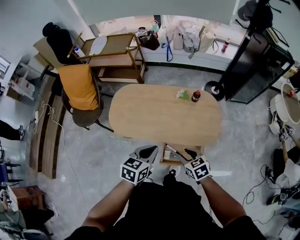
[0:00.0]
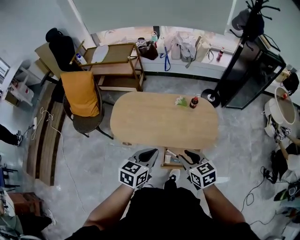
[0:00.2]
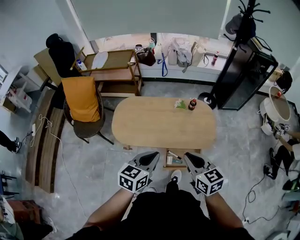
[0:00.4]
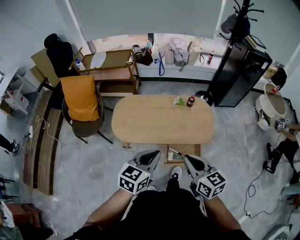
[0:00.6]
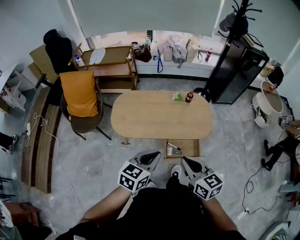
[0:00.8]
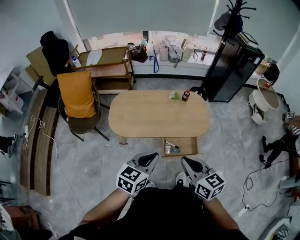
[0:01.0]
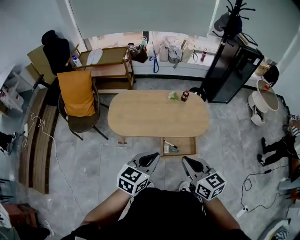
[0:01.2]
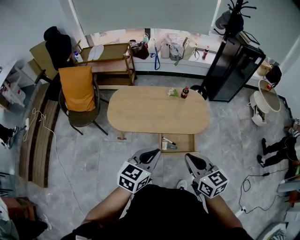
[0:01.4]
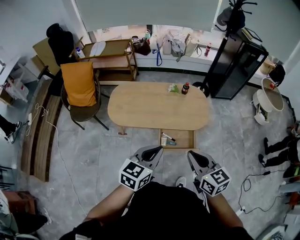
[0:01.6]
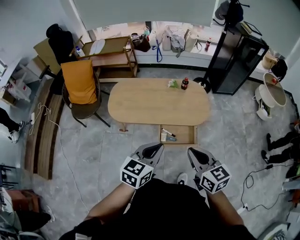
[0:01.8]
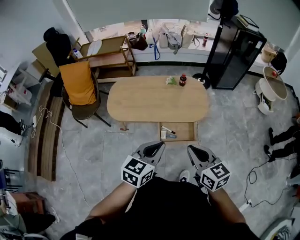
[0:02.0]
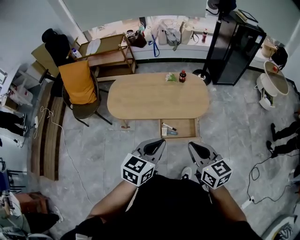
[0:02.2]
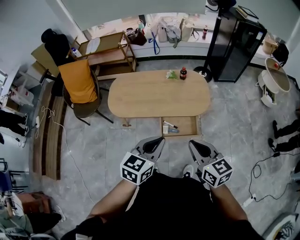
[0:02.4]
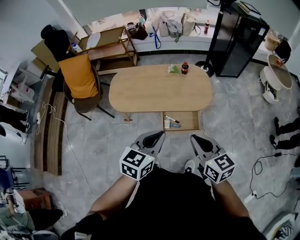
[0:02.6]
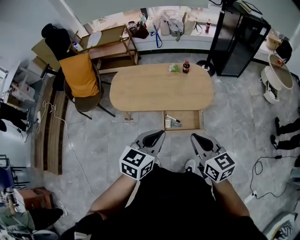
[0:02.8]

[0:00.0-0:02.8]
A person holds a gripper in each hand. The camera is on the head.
0:00.0 to 0:01.4: The right gripper travels upward and backward by some 30 cm, swivels about 30 degrees, and closes; the left gripper is displaced backward and upward by about 20 cm.
0:01.4 to 0:02.8: The two grippers go roughly 10 cm to the right.

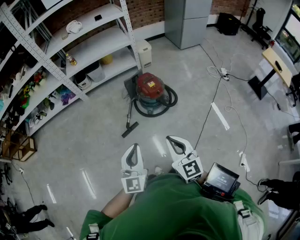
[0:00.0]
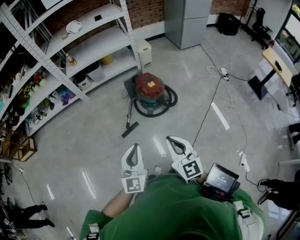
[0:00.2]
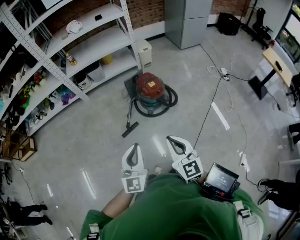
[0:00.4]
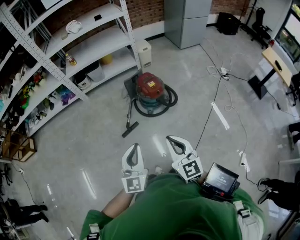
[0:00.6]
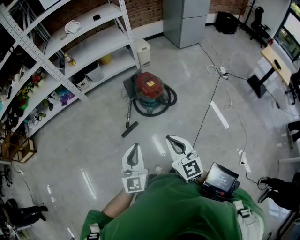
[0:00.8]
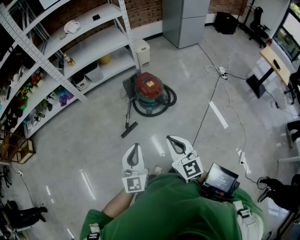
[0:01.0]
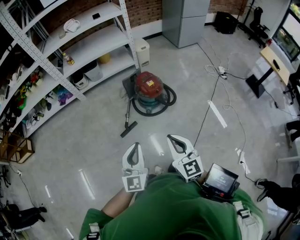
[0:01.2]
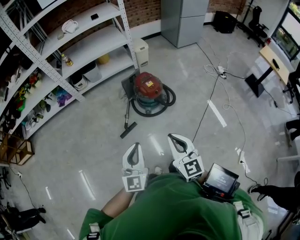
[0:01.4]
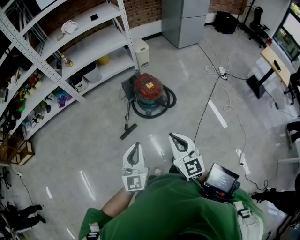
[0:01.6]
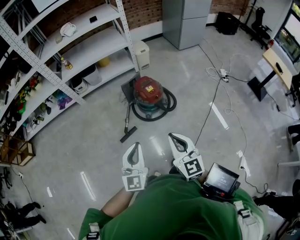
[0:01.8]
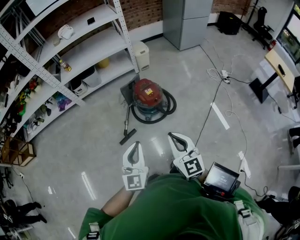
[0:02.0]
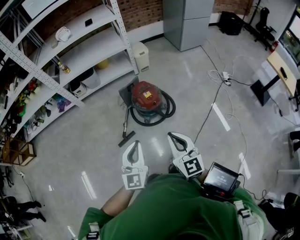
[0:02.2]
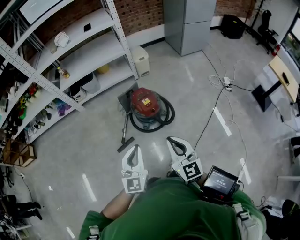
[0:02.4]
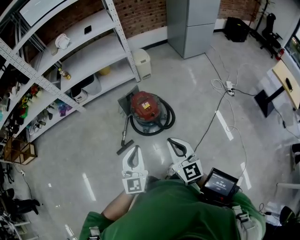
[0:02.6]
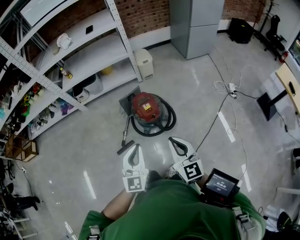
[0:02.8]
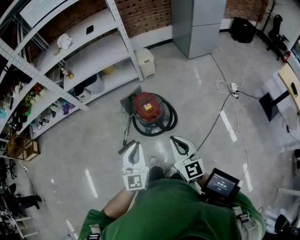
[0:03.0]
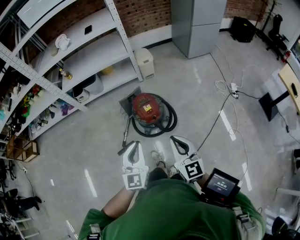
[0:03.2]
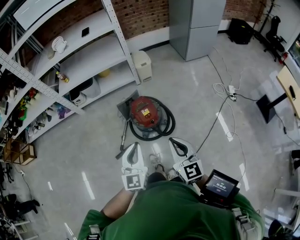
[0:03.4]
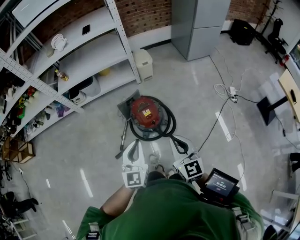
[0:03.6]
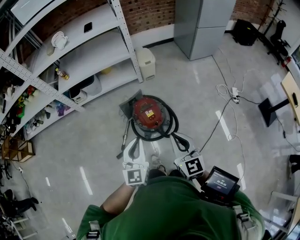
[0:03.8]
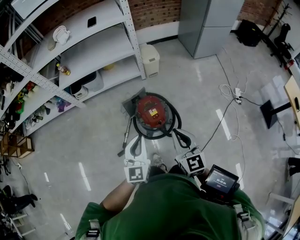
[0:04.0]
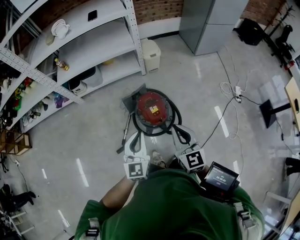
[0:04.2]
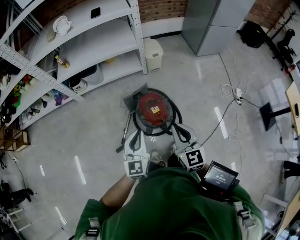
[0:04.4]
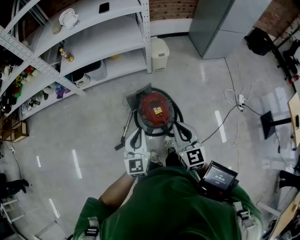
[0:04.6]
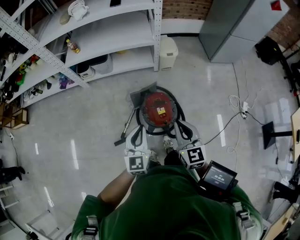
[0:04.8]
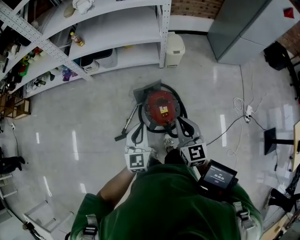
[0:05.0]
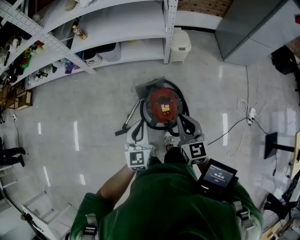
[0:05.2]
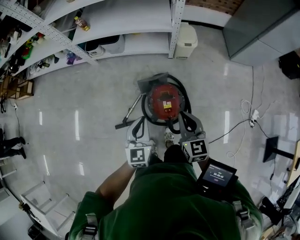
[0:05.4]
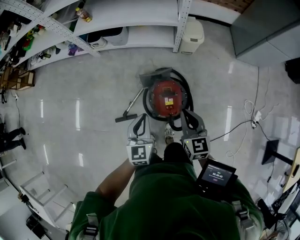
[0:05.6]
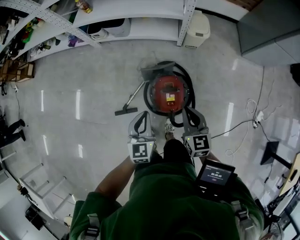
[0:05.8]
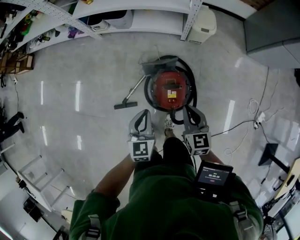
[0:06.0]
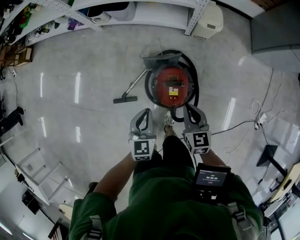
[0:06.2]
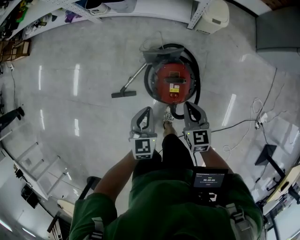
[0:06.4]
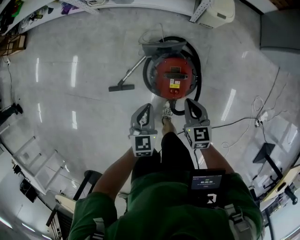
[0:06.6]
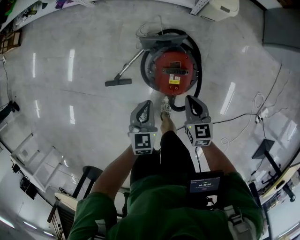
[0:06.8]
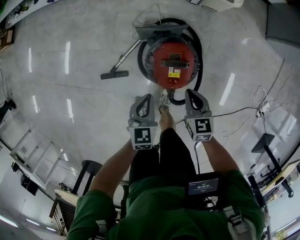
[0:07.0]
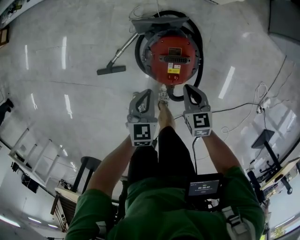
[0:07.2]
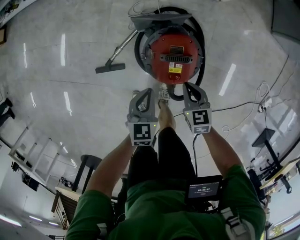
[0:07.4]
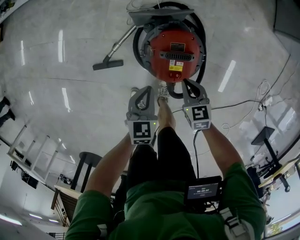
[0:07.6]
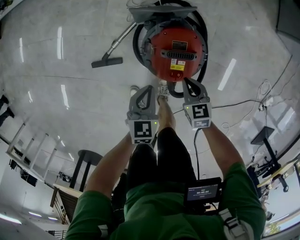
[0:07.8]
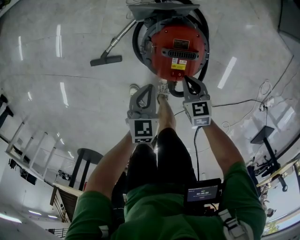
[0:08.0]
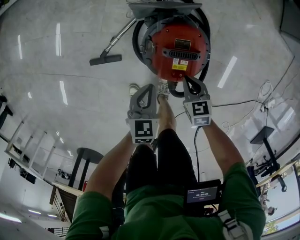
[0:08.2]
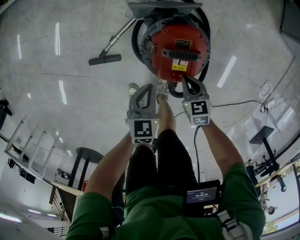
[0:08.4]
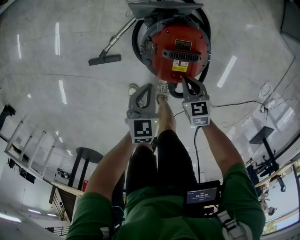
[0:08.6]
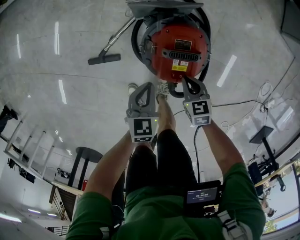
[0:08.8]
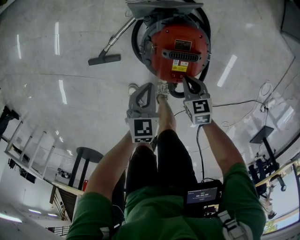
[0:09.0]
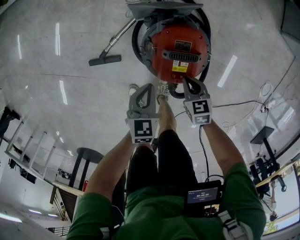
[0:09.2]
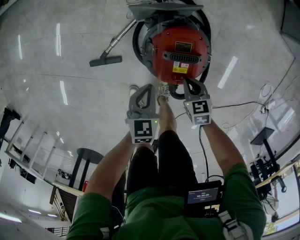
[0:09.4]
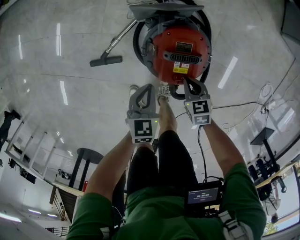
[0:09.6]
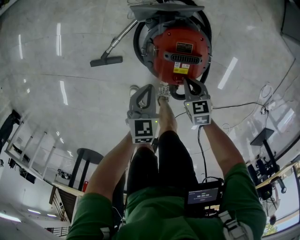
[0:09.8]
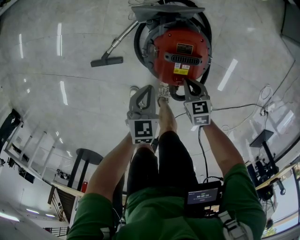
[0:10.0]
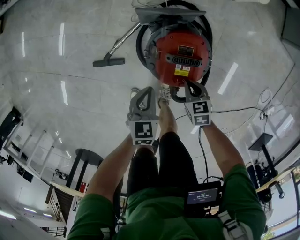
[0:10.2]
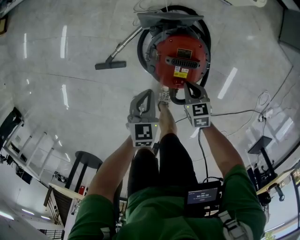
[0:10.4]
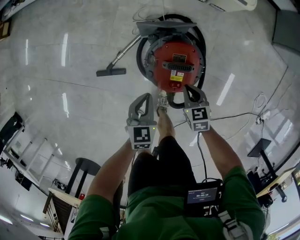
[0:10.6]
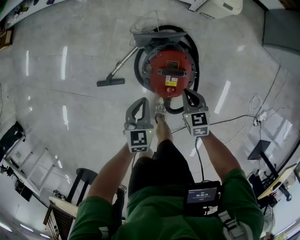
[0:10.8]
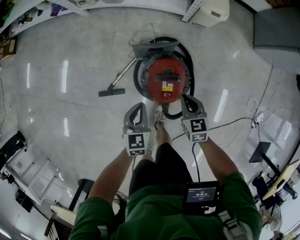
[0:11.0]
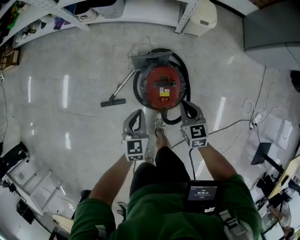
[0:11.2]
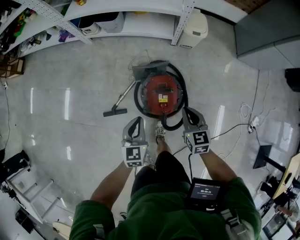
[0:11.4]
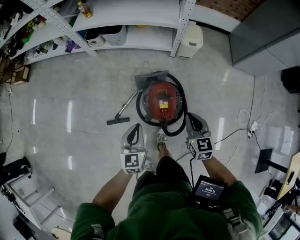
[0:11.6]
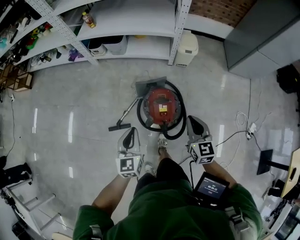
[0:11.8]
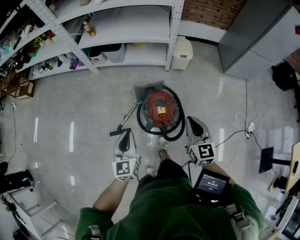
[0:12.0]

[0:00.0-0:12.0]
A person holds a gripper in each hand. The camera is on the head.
0:00.0 to 0:01.6: There are only small adjustments of the grippers.
0:01.6 to 0:03.0: Both grippers travel together forward and to the right, some 25 cm.
0:03.0 to 0:04.4: Both grippers move forward, roughly 20 cm.
0:04.4 to 0:06.0: The right gripper travels forward and downward by approximately 25 cm, and rotates some 30 degrees; the left gripper heads downward and forward, covering about 20 cm, and rotates approximately 30 degrees.
0:06.0 to 0:07.6: The two grippers go about 30 cm downward. The right gripper turns by some 30 degrees.
0:07.6 to 0:09.0: Both grippers travel together downward, approximately 5 cm.
0:09.0 to 0:10.4: There are only small adjustments of the grippers.
0:10.4 to 0:12.0: The grippers both shift upward by some 40 cm. The left gripper tilts its fingers about 30 degrees upward, while the right gripper points its fingers about 40 degrees further upward.

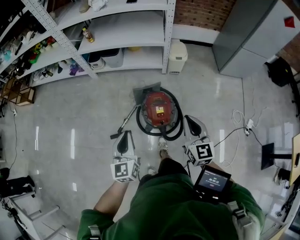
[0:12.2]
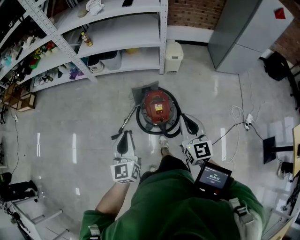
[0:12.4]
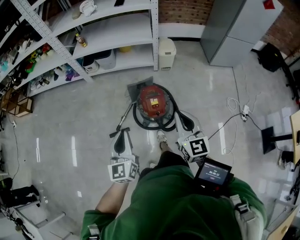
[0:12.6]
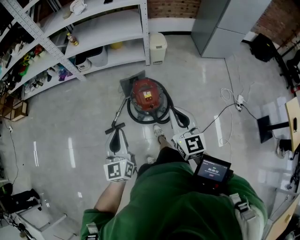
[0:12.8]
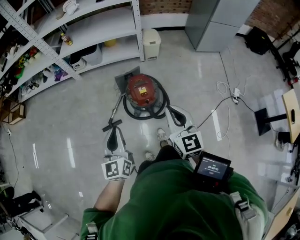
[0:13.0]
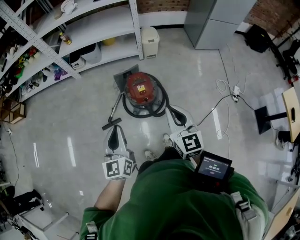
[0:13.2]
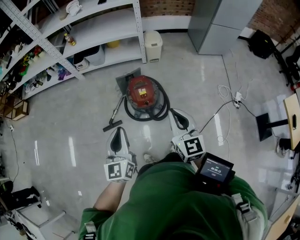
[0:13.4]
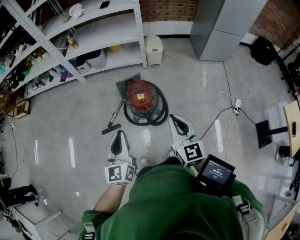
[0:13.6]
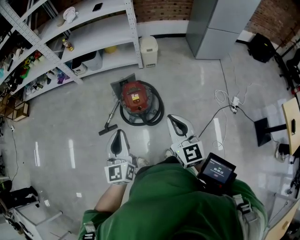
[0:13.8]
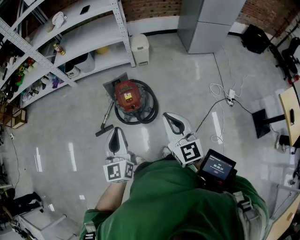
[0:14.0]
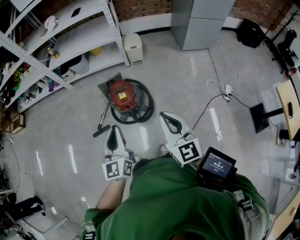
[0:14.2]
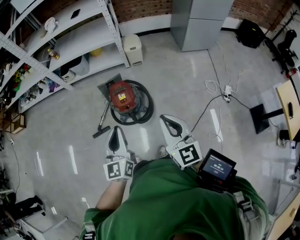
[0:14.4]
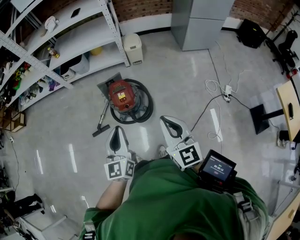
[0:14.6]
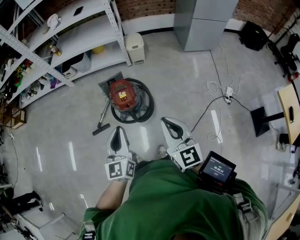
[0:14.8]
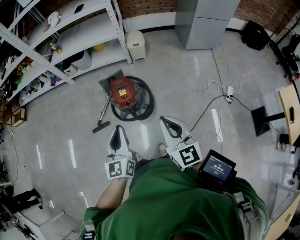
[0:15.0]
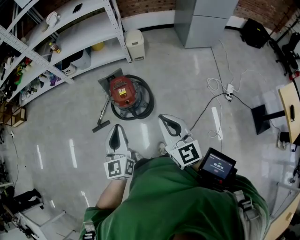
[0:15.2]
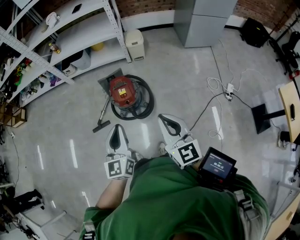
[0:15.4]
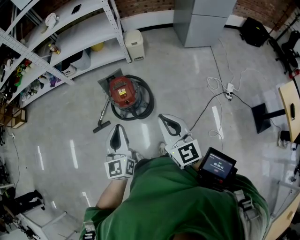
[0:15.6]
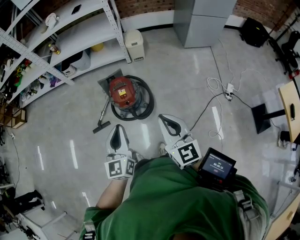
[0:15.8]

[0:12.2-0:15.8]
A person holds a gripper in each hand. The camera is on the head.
0:12.2 to 0:14.0: The left gripper is displaced backward, to the right and upward by about 25 cm, while the right gripper heads backward and to the right, covering some 25 cm.
0:14.0 to 0:15.8: The right gripper shifts by about 5 cm; the left gripper shifts roughly 5 cm to the right.

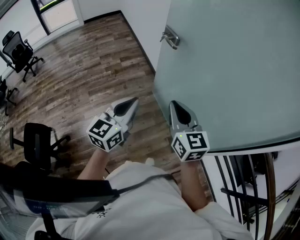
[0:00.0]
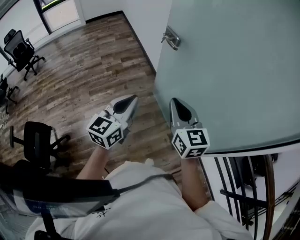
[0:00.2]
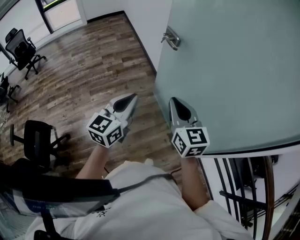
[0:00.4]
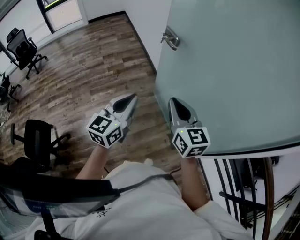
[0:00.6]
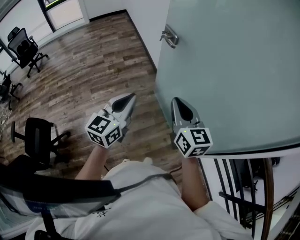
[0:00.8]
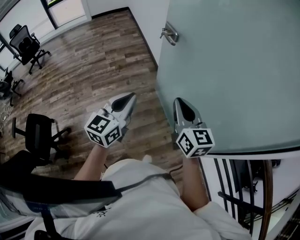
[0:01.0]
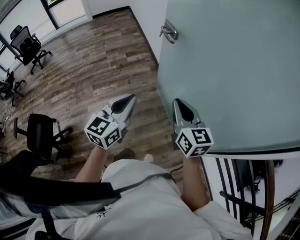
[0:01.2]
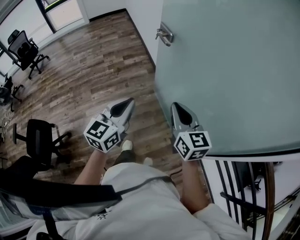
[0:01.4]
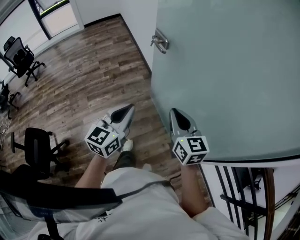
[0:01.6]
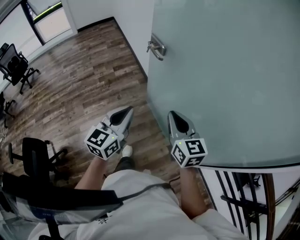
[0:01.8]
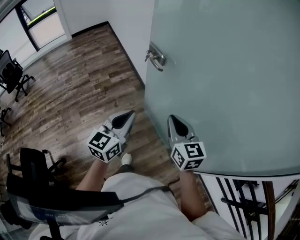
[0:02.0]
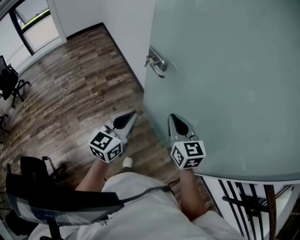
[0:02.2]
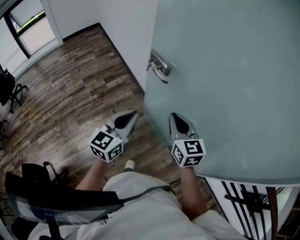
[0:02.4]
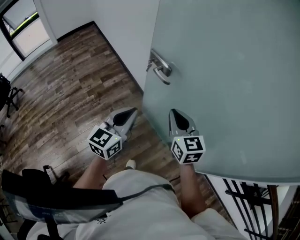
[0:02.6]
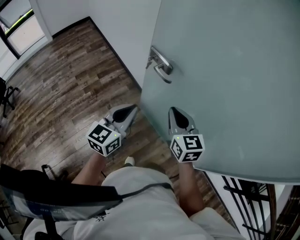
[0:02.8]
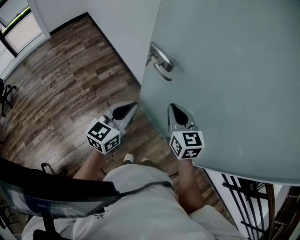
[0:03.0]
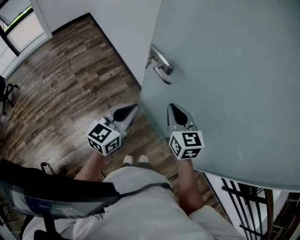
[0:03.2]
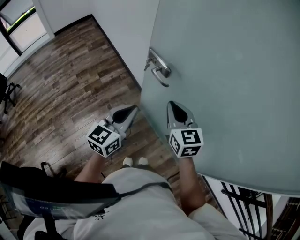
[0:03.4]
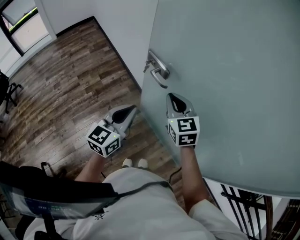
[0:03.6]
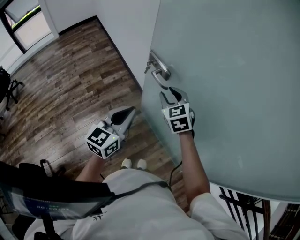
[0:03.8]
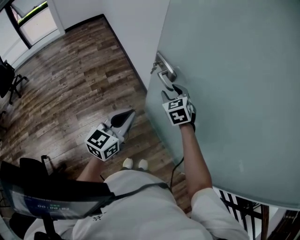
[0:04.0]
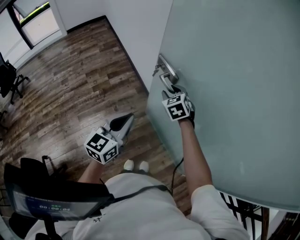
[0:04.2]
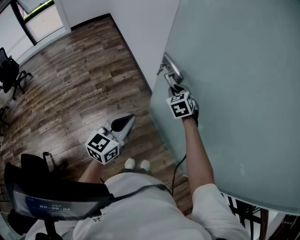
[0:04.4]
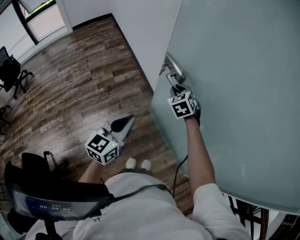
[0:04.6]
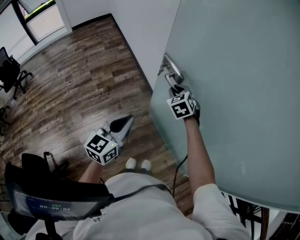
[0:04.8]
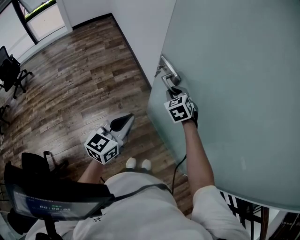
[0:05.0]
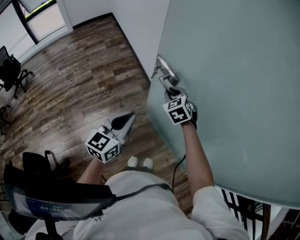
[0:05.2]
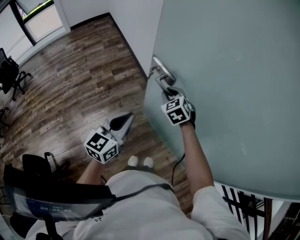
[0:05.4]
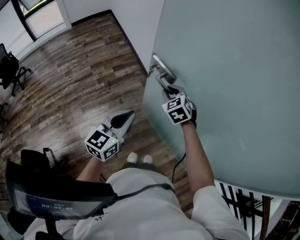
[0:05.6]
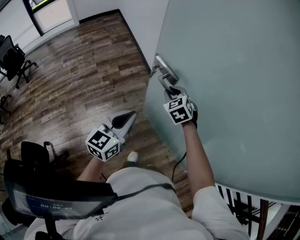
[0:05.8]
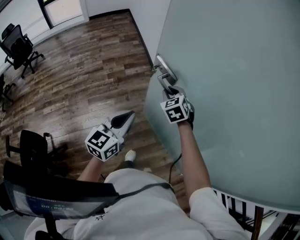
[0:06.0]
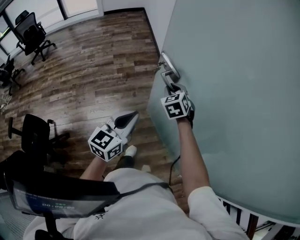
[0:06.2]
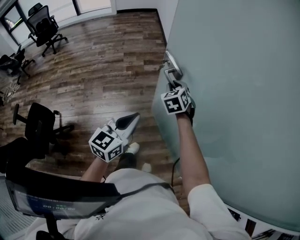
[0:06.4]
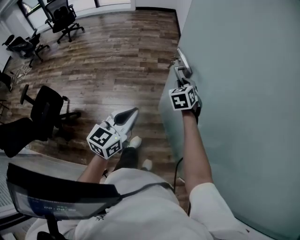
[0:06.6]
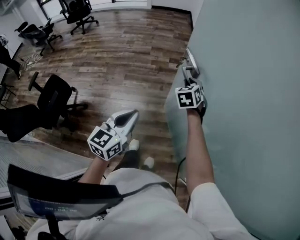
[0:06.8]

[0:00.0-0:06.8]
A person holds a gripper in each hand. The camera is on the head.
0:00.0 to 0:01.4: The grippers both shift to the right by approximately 5 cm.
0:01.4 to 0:02.8: The two grippers go some 25 cm forward and to the left. The right gripper changes its angle by roughly 20 degrees.
0:02.8 to 0:04.0: The right gripper heads forward and downward, covering some 15 cm, swivels roughly 30 degrees, and opens.
0:04.0 to 0:05.4: The left gripper changes place by some 5 cm; the right gripper is displaced to the left by about 5 cm, and closes its fingers.
0:05.4 to 0:06.8: The left gripper travels backward by approximately 25 cm, and turns by roughly 30 degrees; the right gripper heads backward and to the left, covering some 15 cm.
